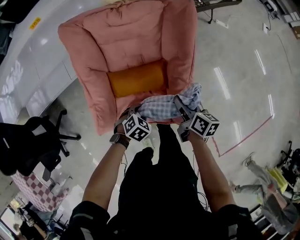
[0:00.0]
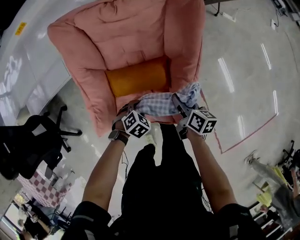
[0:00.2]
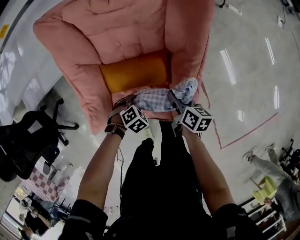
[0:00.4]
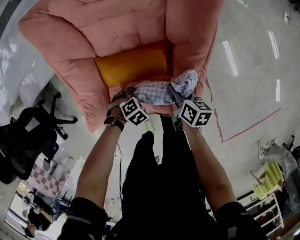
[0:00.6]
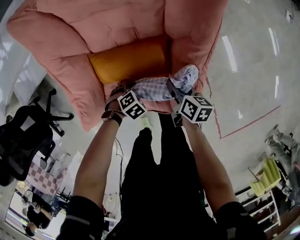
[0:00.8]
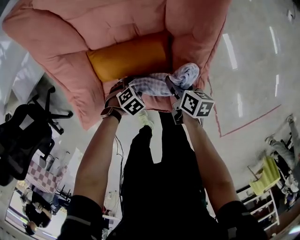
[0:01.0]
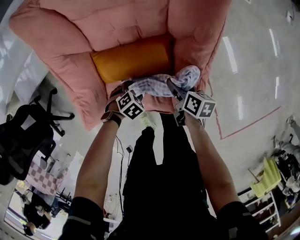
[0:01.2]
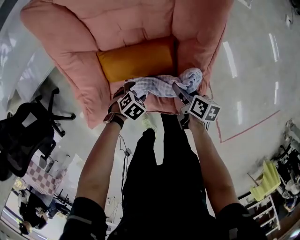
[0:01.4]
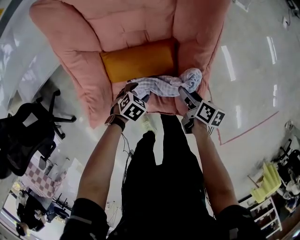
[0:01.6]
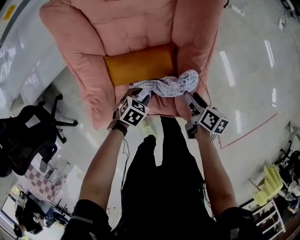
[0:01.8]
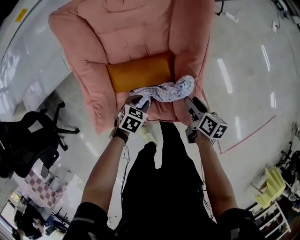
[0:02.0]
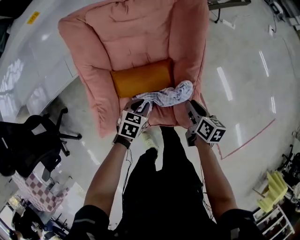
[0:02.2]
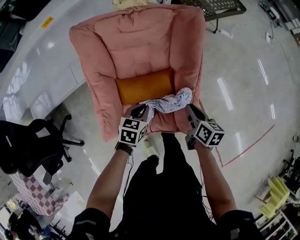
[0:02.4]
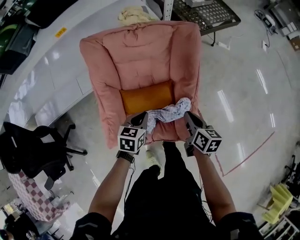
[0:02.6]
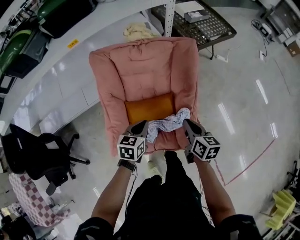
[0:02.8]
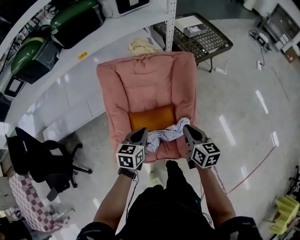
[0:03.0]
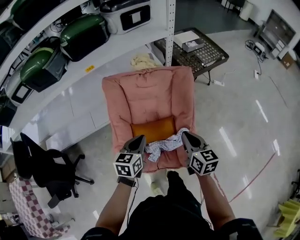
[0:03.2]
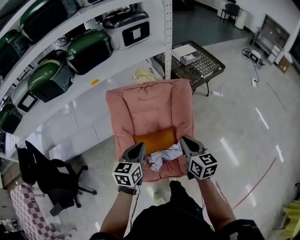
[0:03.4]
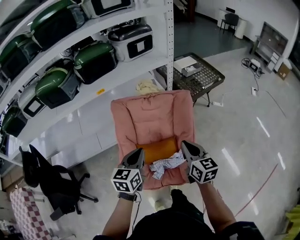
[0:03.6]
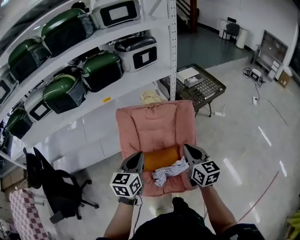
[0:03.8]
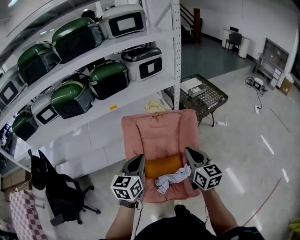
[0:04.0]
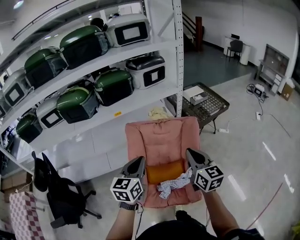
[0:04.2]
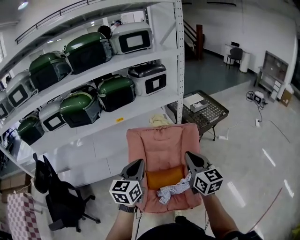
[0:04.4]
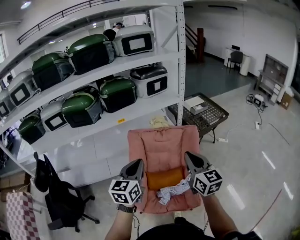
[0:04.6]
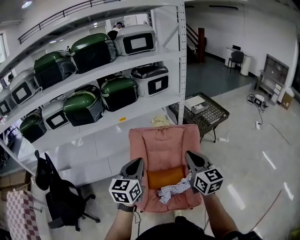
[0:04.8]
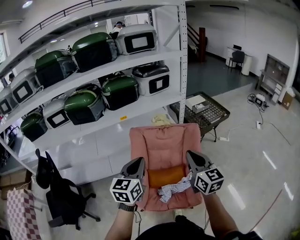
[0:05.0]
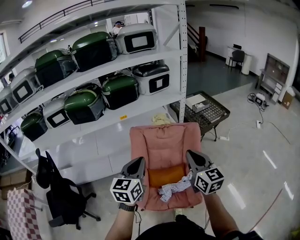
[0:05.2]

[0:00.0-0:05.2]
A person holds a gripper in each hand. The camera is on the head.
0:00.0 to 0:01.8: Both grippers move downward, about 10 cm. The left gripper opens, then closes again; the right gripper opens its fingers.
0:01.8 to 0:03.4: The two grippers go roughly 40 cm upward. The left gripper angles its fingers upward, by about 40 degrees, and closes up. The right gripper swivels roughly 50 degrees, and closes.
0:03.4 to 0:05.2: The two grippers go some 20 cm upward. The right gripper changes its angle by some 20 degrees.

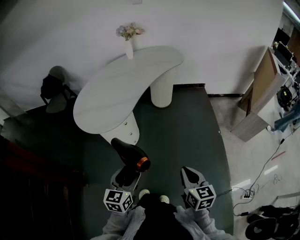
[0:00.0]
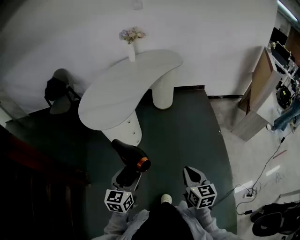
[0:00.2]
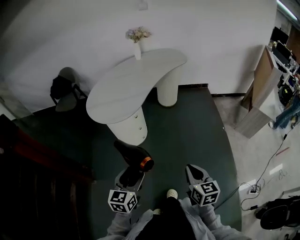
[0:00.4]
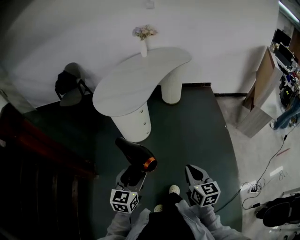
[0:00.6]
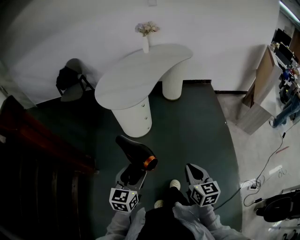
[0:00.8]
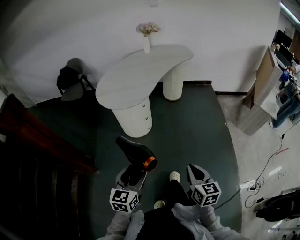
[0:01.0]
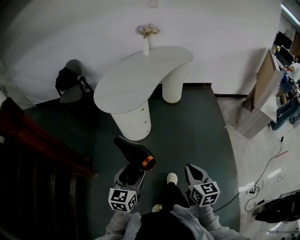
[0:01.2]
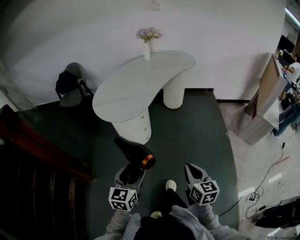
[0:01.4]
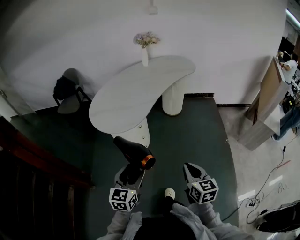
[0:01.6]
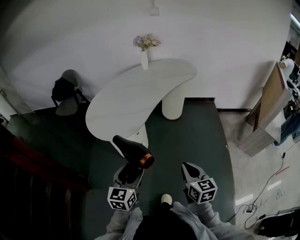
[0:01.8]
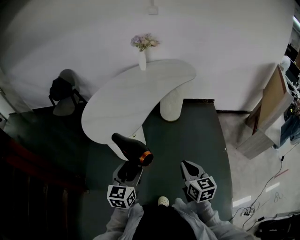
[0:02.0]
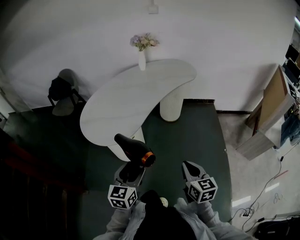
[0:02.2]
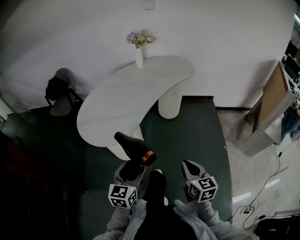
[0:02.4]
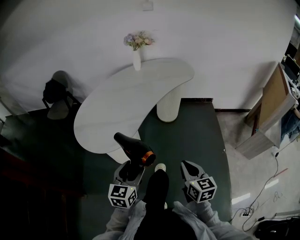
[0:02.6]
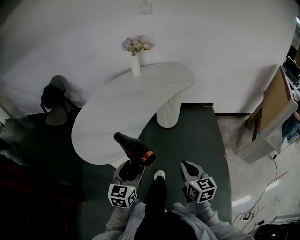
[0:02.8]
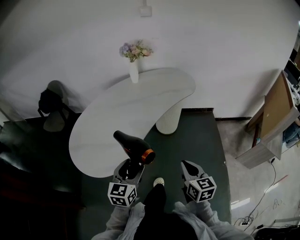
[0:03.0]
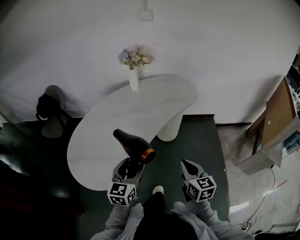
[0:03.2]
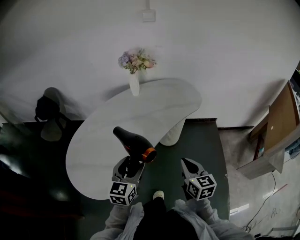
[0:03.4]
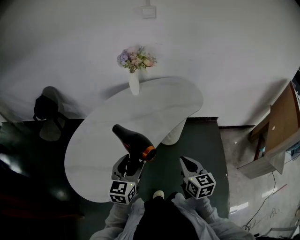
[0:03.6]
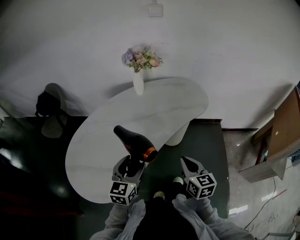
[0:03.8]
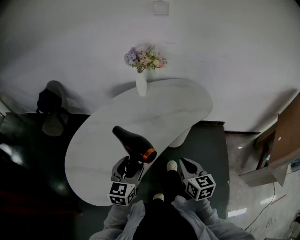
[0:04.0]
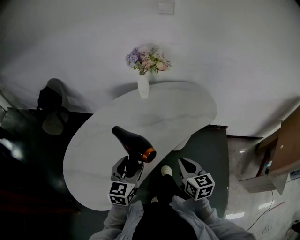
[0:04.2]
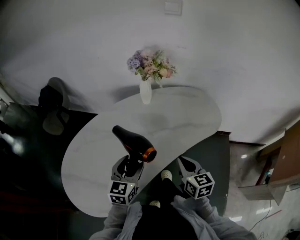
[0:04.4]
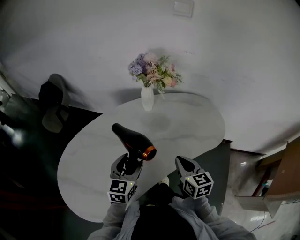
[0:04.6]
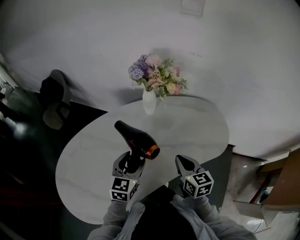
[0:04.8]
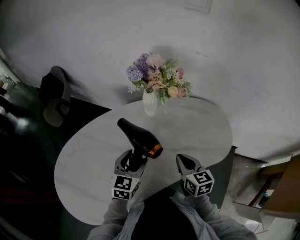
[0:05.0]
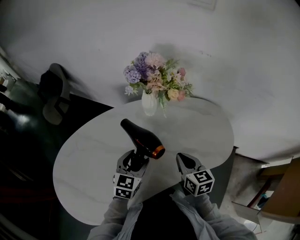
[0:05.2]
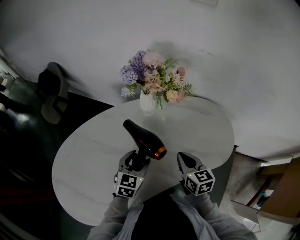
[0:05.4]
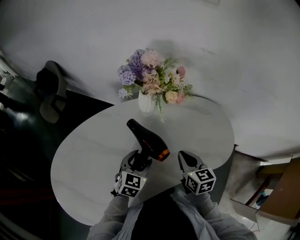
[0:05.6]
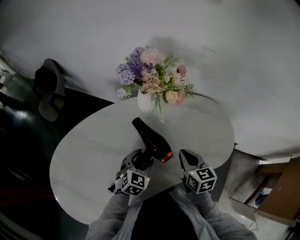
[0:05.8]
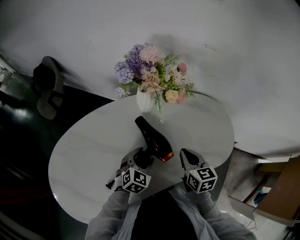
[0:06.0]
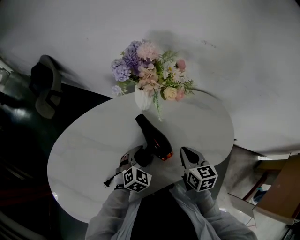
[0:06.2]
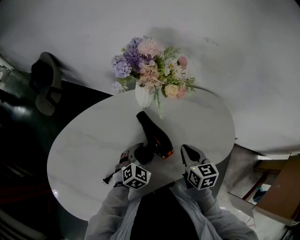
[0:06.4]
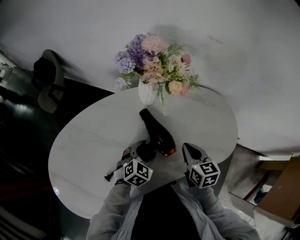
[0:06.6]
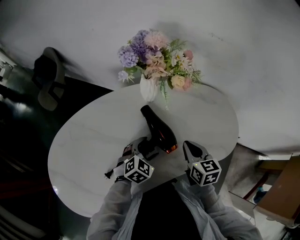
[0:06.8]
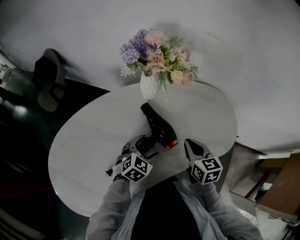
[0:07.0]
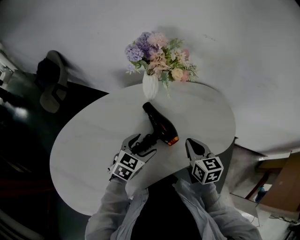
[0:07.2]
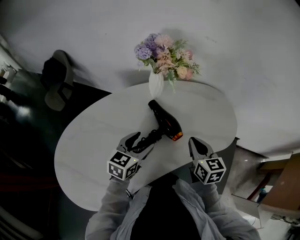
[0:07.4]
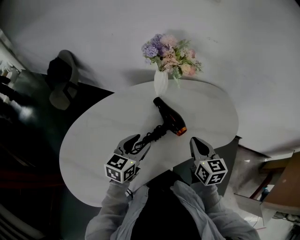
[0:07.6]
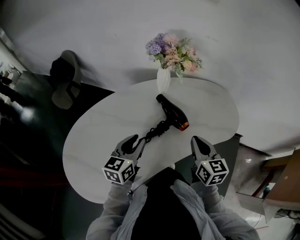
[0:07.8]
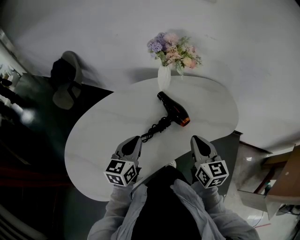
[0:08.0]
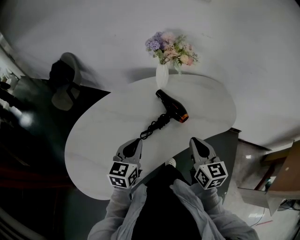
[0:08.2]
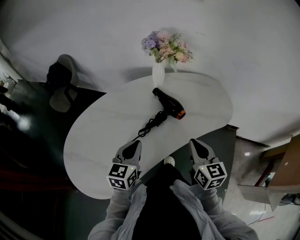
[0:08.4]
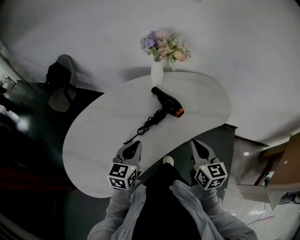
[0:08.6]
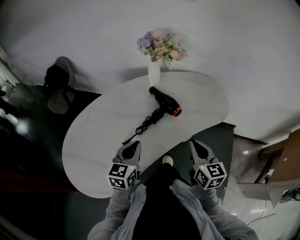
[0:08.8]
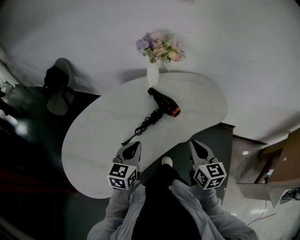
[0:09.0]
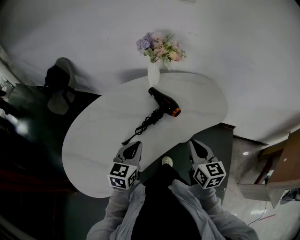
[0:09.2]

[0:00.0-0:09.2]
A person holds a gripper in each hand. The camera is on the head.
0:00.0 to 0:01.6: The grippers both shift to the left by some 5 cm. The left gripper travels backward and back again, approximately 20 cm each way; the right gripper goes backward and returns, about 20 cm each way.
0:01.6 to 0:03.0: The grippers both shift forward by approximately 35 cm.
0:03.0 to 0:04.6: Both grippers are carried forward, some 40 cm.
0:04.6 to 0:06.2: The left gripper moves downward, forward and to the right, about 20 cm, and changes its angle by some 30 degrees, while the right gripper shifts approximately 20 cm forward, downward and to the right.
0:06.2 to 0:07.6: The right gripper moves backward and upward, approximately 10 cm, while the left gripper goes some 20 cm upward, backward and to the left, and turns by about 40 degrees.
0:07.6 to 0:09.2: The grippers both shift backward by approximately 15 cm. The left gripper closes.

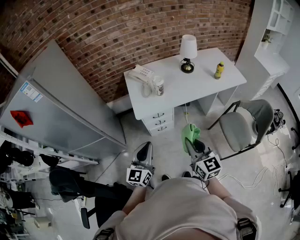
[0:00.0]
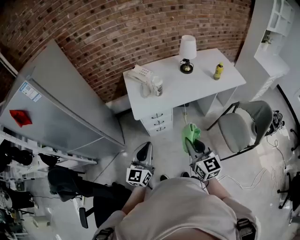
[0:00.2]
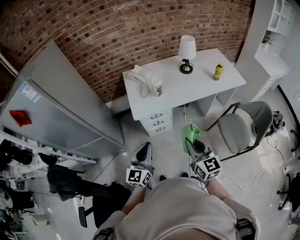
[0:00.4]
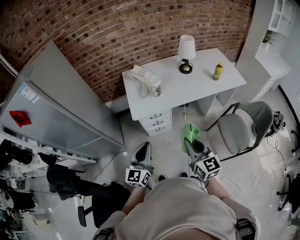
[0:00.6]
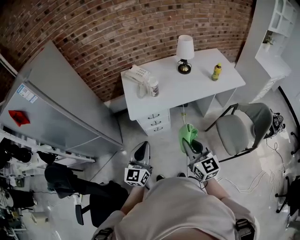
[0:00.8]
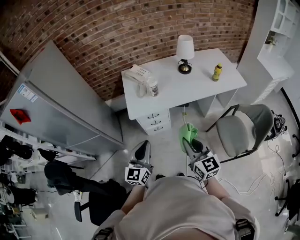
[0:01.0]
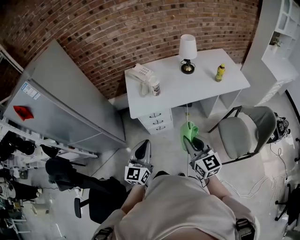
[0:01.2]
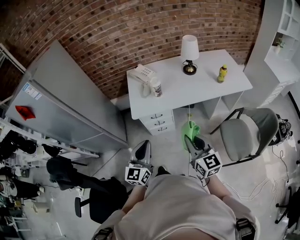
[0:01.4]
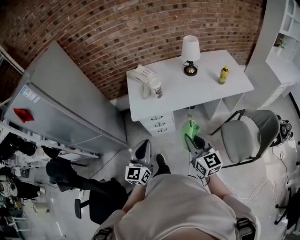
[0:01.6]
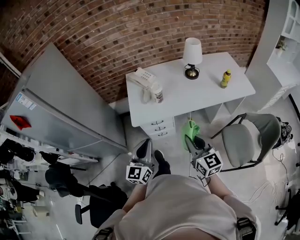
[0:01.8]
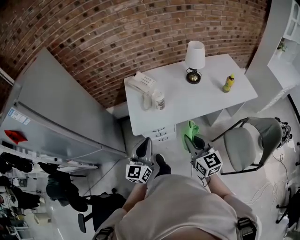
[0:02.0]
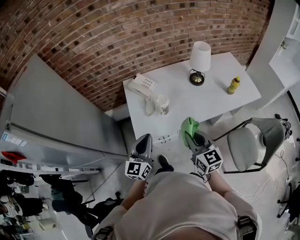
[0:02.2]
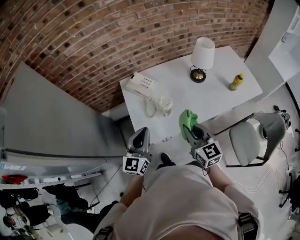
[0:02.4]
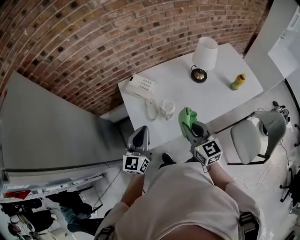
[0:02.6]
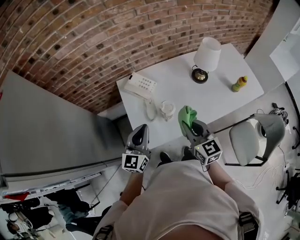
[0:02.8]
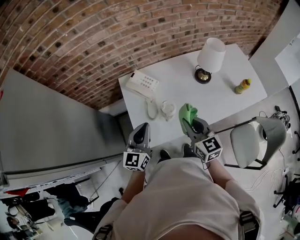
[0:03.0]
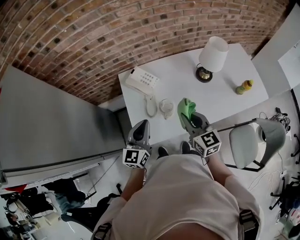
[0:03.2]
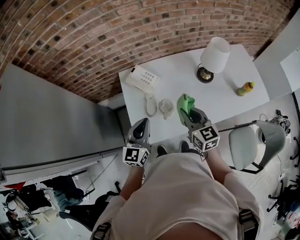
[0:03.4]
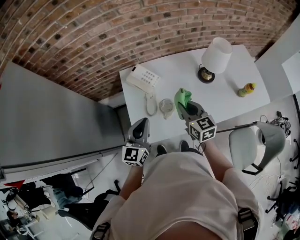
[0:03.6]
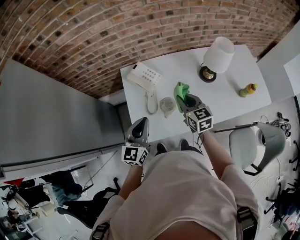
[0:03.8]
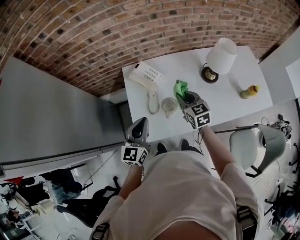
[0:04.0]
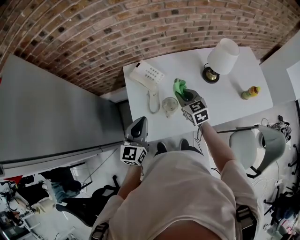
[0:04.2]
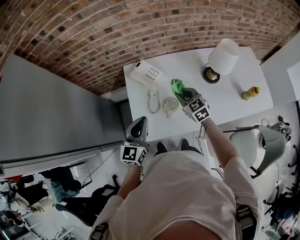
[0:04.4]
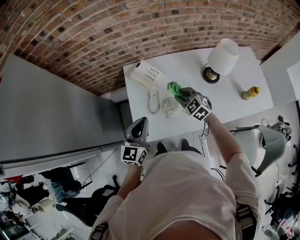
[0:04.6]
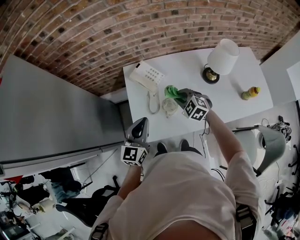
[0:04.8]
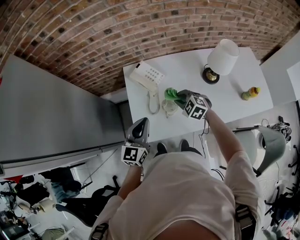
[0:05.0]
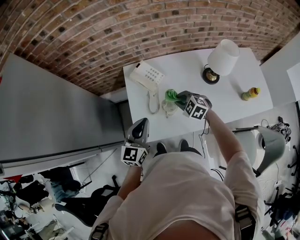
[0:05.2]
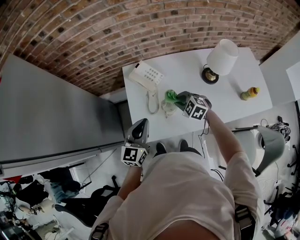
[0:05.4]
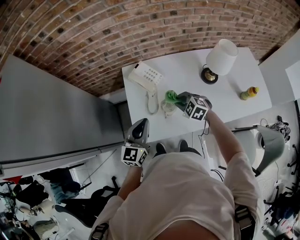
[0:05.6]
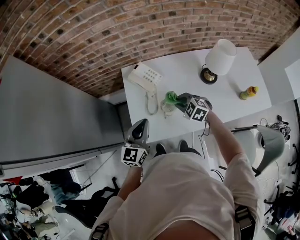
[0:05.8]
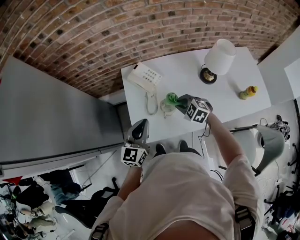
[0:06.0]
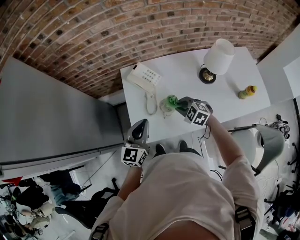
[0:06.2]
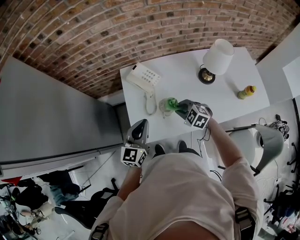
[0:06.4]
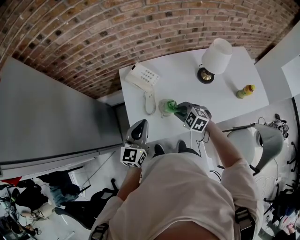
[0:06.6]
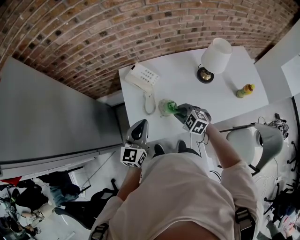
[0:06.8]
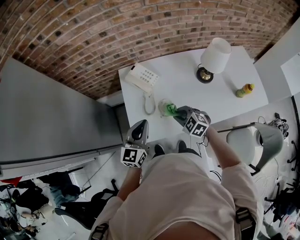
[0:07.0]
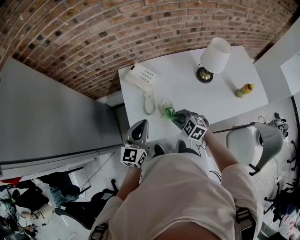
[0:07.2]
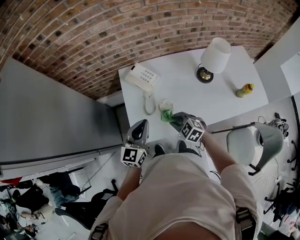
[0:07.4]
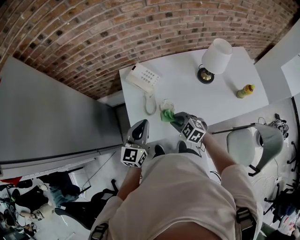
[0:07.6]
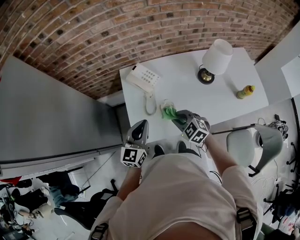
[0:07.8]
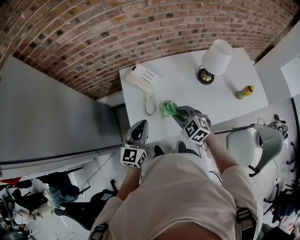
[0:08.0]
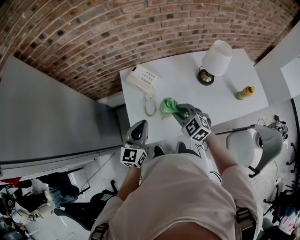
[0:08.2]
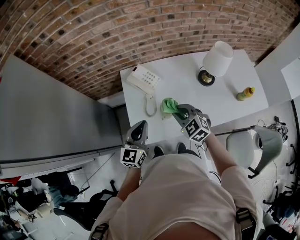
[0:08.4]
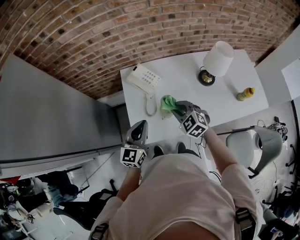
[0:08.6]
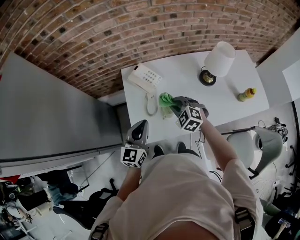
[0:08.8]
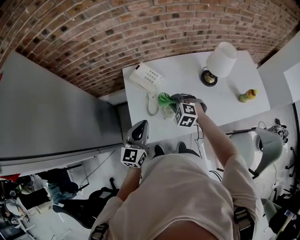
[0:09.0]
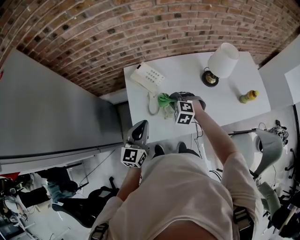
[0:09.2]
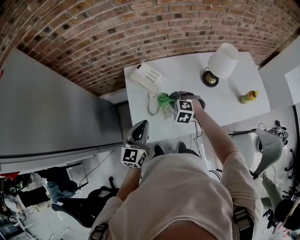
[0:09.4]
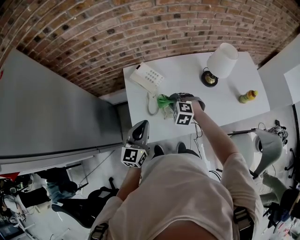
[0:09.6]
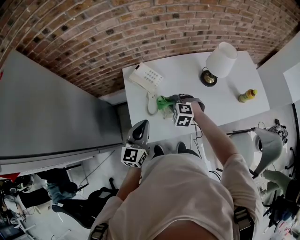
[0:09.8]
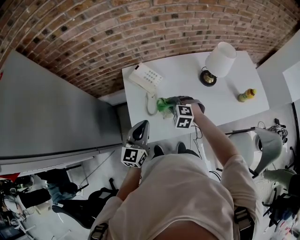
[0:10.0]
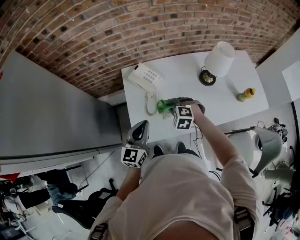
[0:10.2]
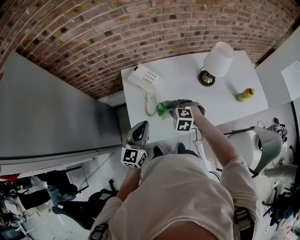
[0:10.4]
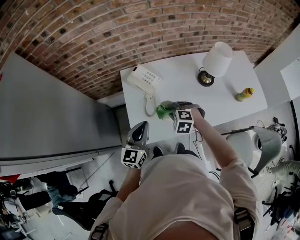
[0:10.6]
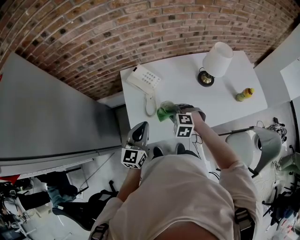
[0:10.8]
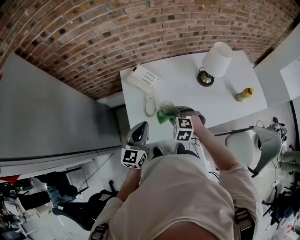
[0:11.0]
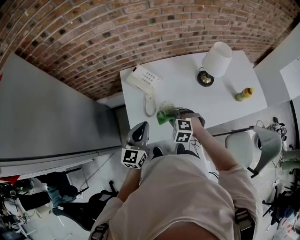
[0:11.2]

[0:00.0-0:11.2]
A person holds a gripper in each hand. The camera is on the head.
0:00.0 to 0:01.6: The right gripper shifts some 10 cm to the right and forward. Meanwhile the left gripper is displaced to the right by approximately 10 cm.
0:01.6 to 0:03.2: The grippers both shift forward by approximately 40 cm.
0:03.2 to 0:04.8: The right gripper heads downward and forward, covering about 15 cm, and rotates about 60 degrees.
0:04.8 to 0:06.4: The right gripper moves backward, some 5 cm.
0:06.4 to 0:08.0: The right gripper shifts approximately 5 cm upward.
0:08.0 to 0:09.6: The right gripper heads forward and downward, covering about 10 cm, and turns by roughly 30 degrees.
0:09.6 to 0:11.2: The right gripper shifts approximately 10 cm backward.
